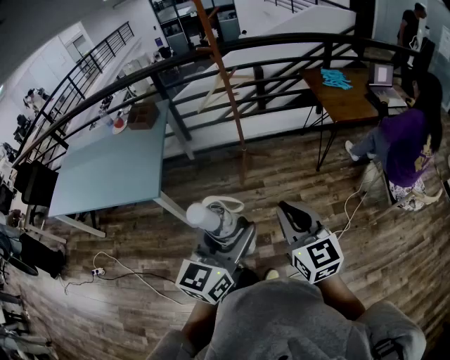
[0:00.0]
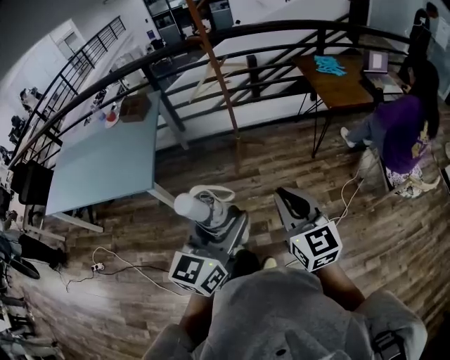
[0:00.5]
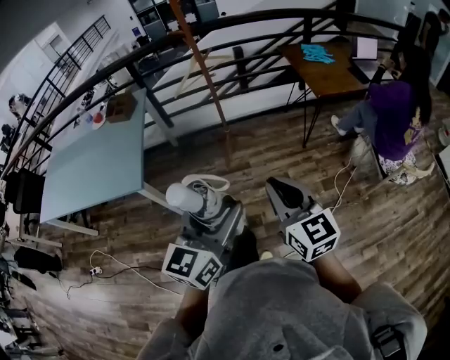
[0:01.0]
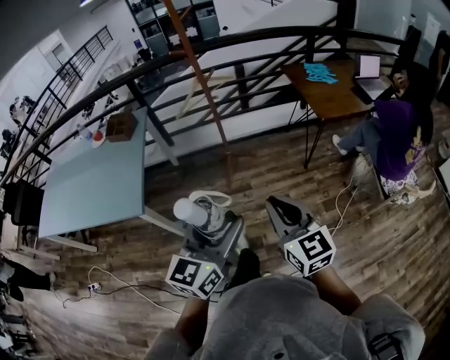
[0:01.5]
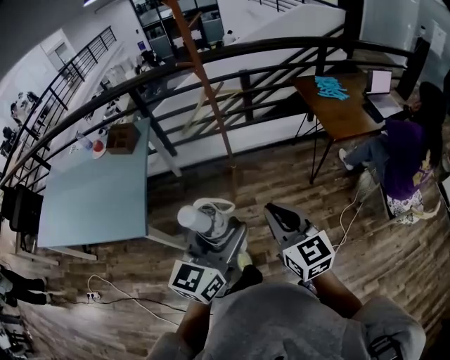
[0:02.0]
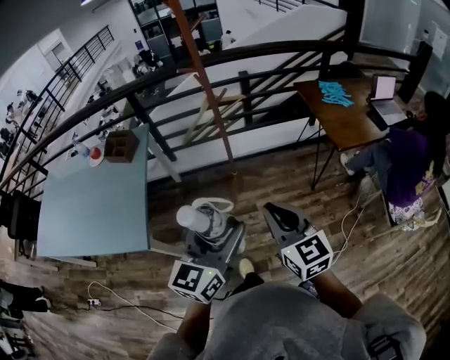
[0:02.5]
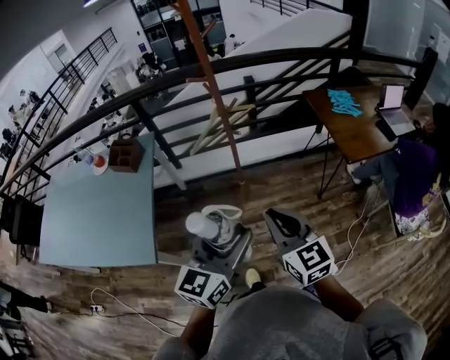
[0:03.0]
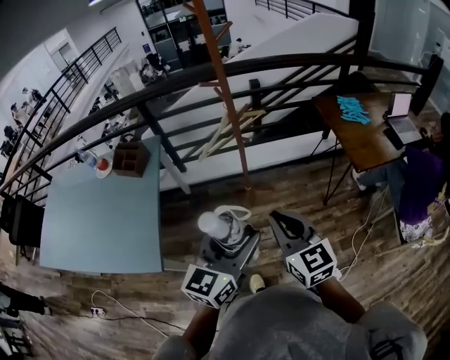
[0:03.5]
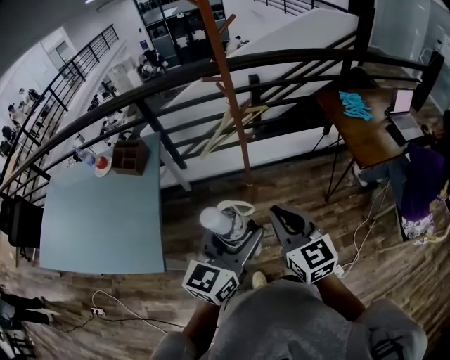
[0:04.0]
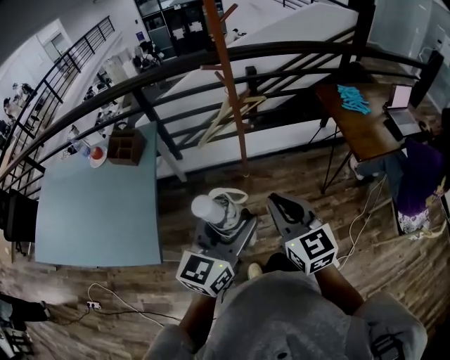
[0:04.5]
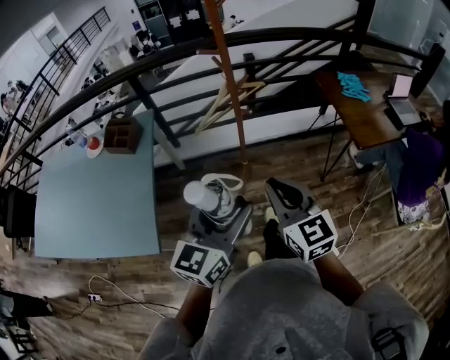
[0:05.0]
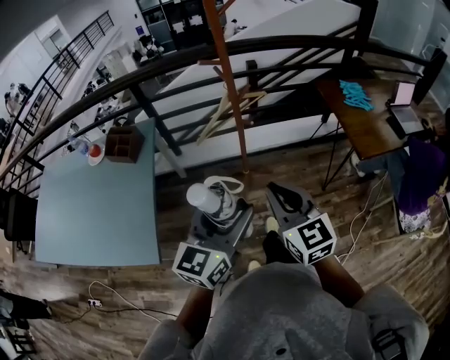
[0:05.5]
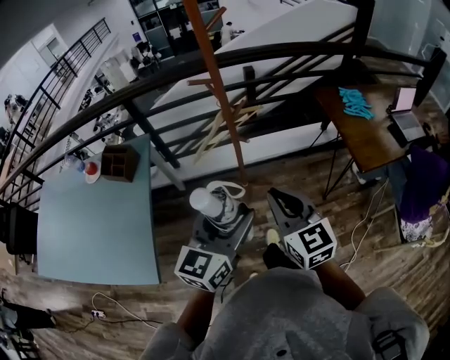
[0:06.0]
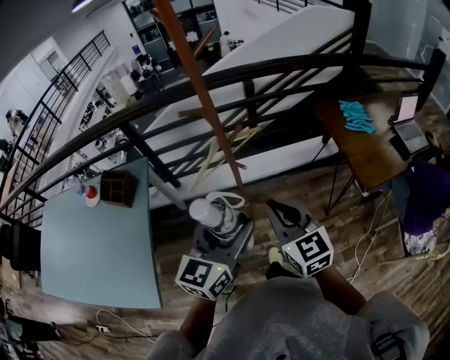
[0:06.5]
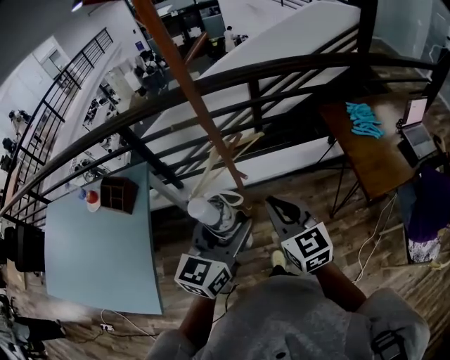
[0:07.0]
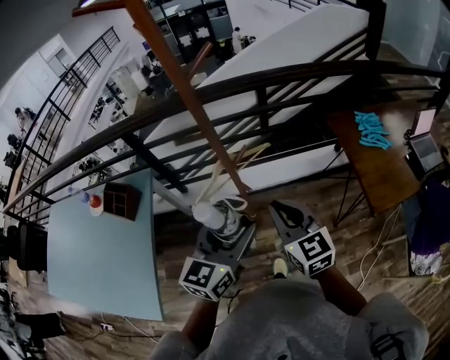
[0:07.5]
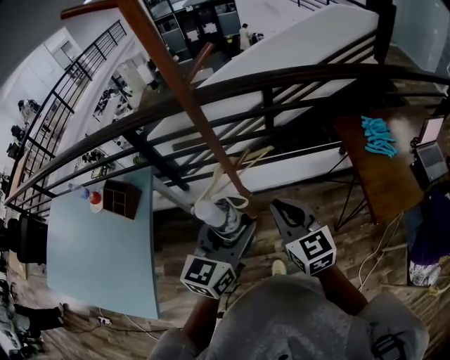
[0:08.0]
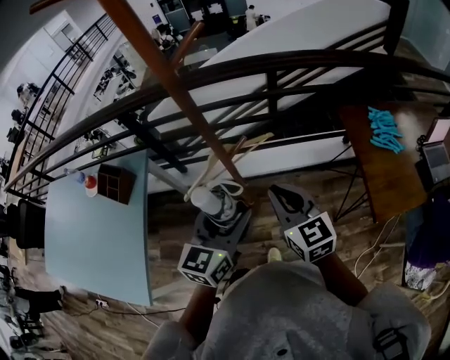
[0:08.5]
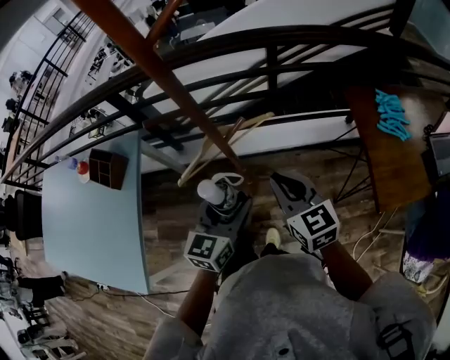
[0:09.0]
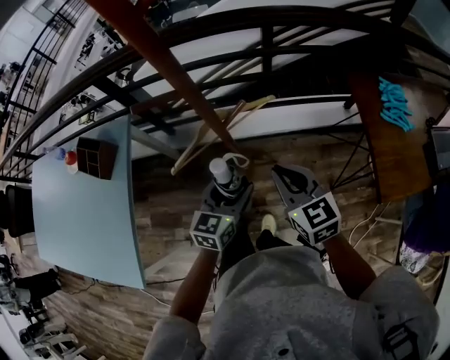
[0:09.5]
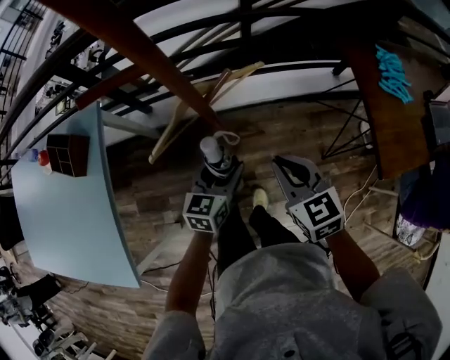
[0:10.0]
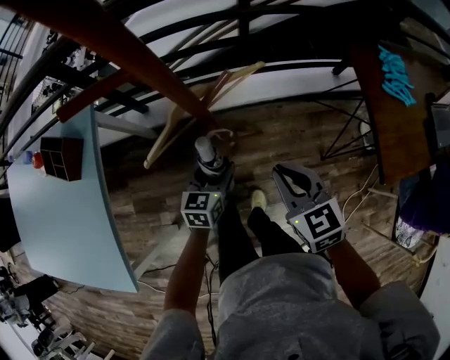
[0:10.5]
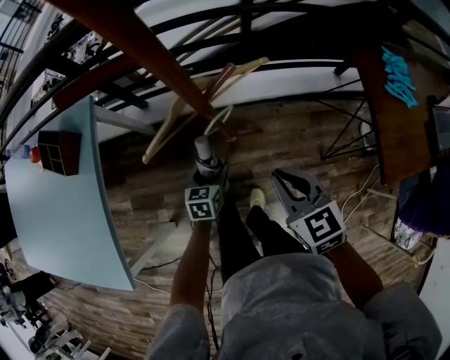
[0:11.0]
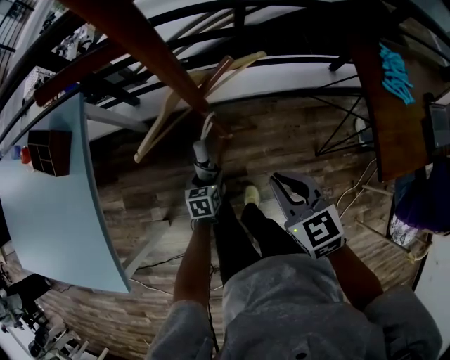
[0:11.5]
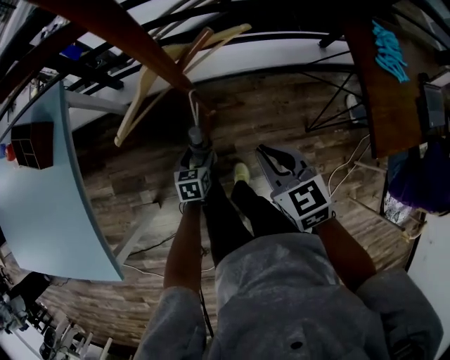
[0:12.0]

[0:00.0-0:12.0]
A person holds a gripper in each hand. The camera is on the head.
0:00.0 to 0:02.0: The two grippers go about 20 cm forward.
0:02.0 to 0:04.0: Both grippers travel together forward and to the left, roughly 20 cm.
0:04.0 to 0:06.0: Both grippers travel together forward, some 10 cm.
0:06.0 to 0:08.0: Both grippers travel together forward, some 20 cm.
0:08.0 to 0:10.0: The right gripper goes about 20 cm downward, while the left gripper is displaced downward by approximately 30 cm.
0:10.0 to 0:12.0: The right gripper travels downward by approximately 5 cm; the left gripper shifts roughly 25 cm downward, and changes its angle by roughly 30 degrees.

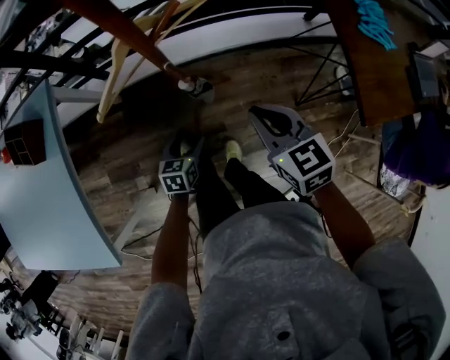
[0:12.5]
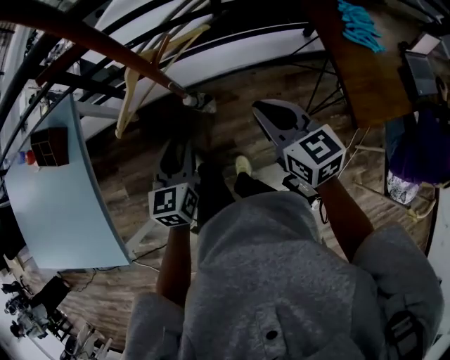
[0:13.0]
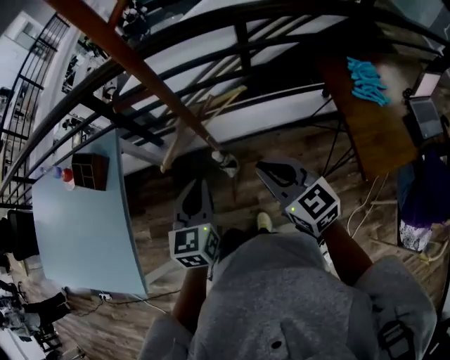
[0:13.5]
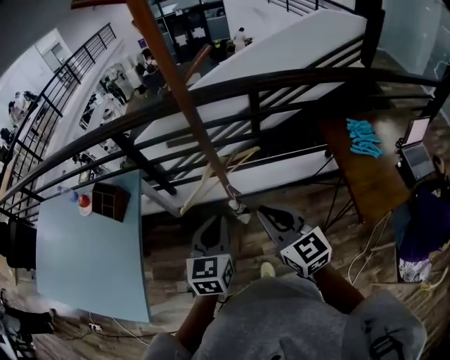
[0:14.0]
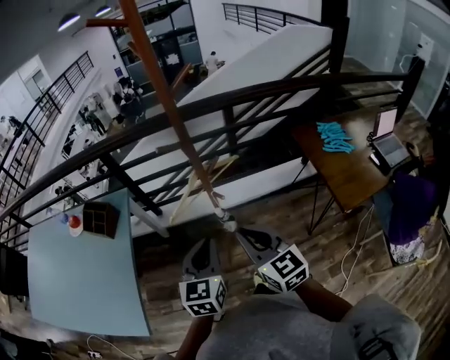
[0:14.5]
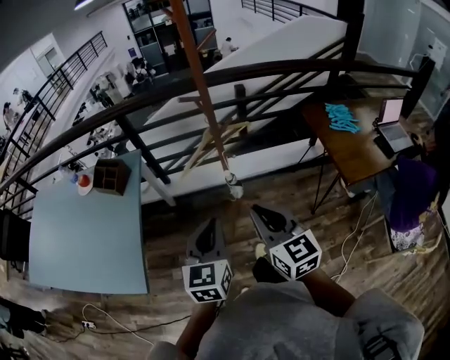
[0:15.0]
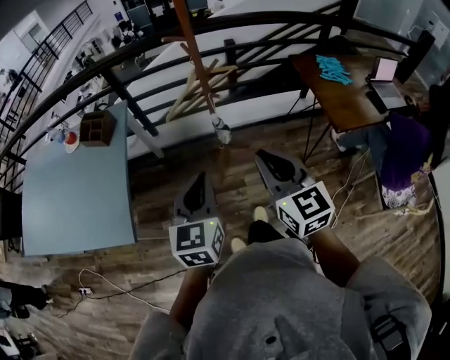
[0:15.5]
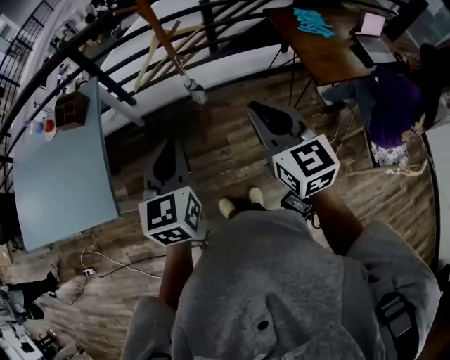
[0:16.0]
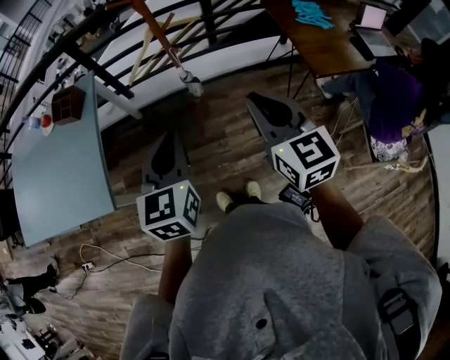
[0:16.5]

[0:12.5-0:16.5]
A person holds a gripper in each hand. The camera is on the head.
0:12.5 to 0:14.5: The left gripper goes roughly 40 cm upward, rotates approximately 30 degrees, and closes up, while the right gripper heads upward, backward and to the left, covering roughly 30 cm, and rotates roughly 20 degrees.
0:14.5 to 0:16.5: The right gripper moves backward and to the right, approximately 20 cm. The left gripper goes approximately 20 cm backward.

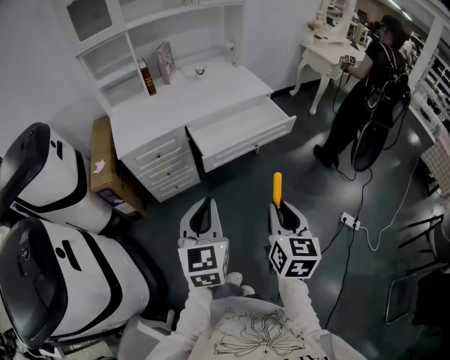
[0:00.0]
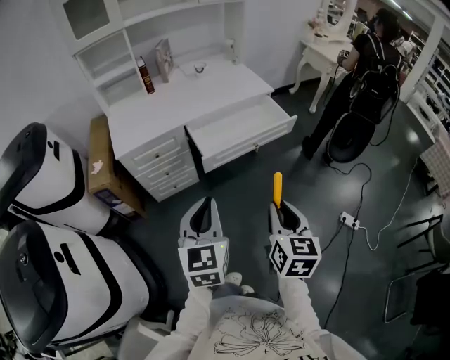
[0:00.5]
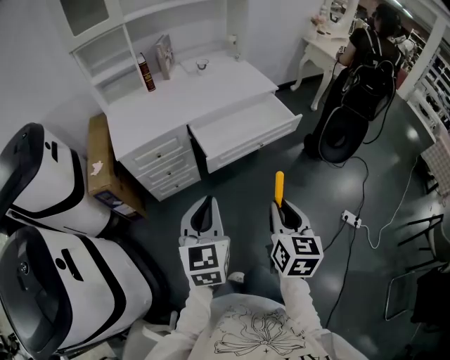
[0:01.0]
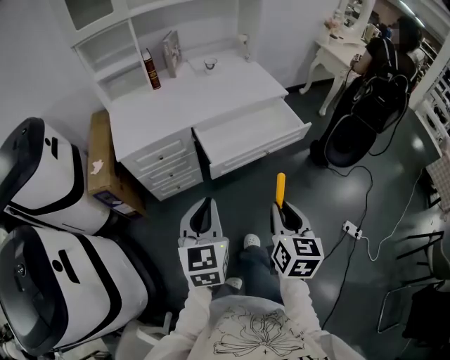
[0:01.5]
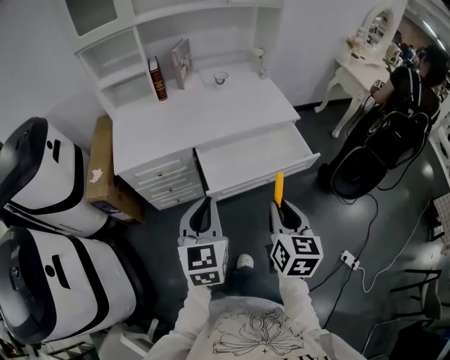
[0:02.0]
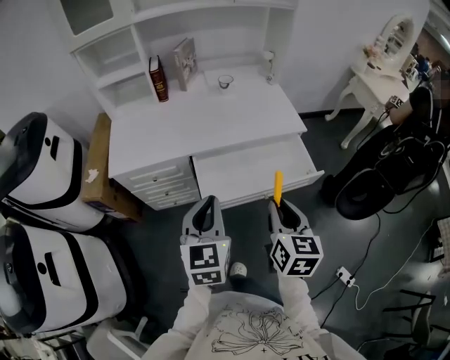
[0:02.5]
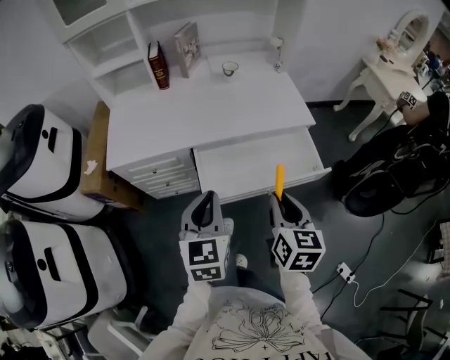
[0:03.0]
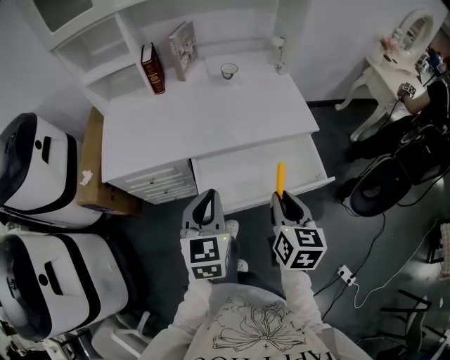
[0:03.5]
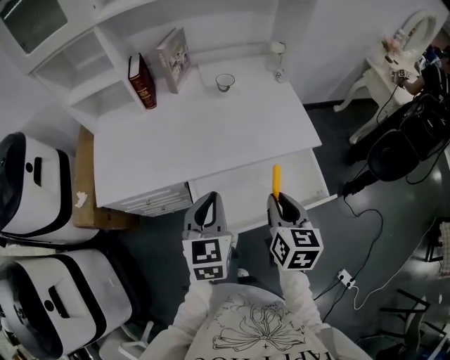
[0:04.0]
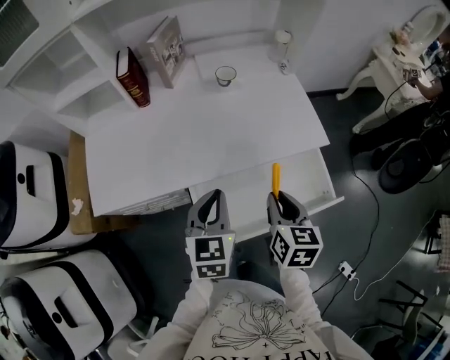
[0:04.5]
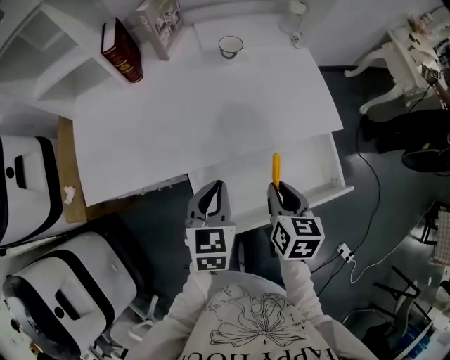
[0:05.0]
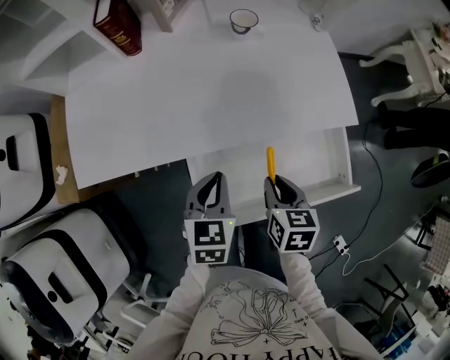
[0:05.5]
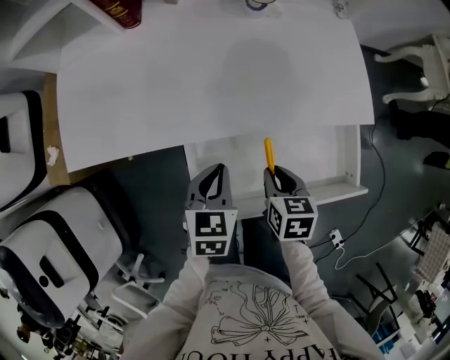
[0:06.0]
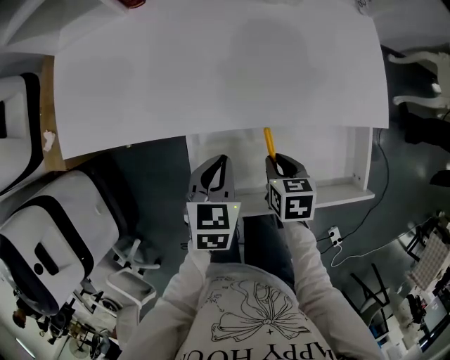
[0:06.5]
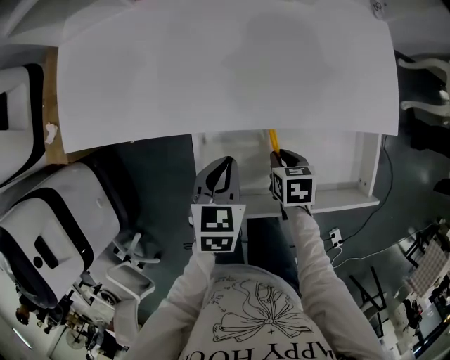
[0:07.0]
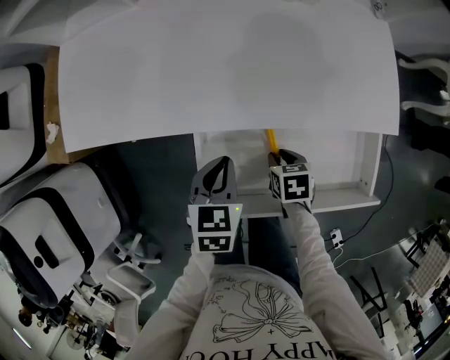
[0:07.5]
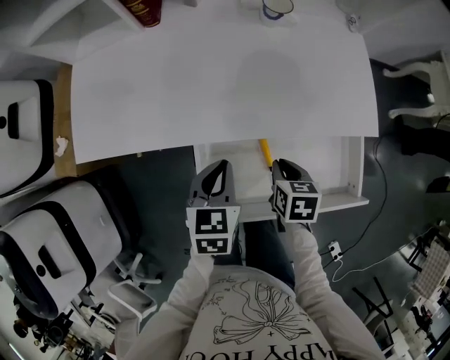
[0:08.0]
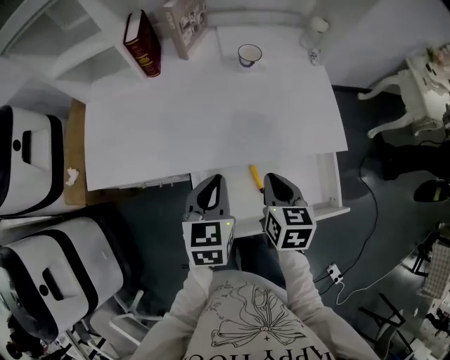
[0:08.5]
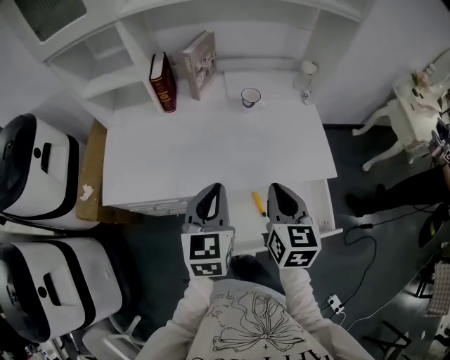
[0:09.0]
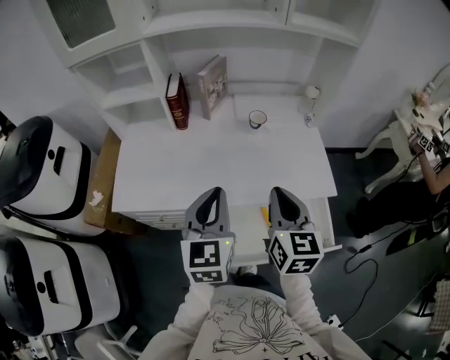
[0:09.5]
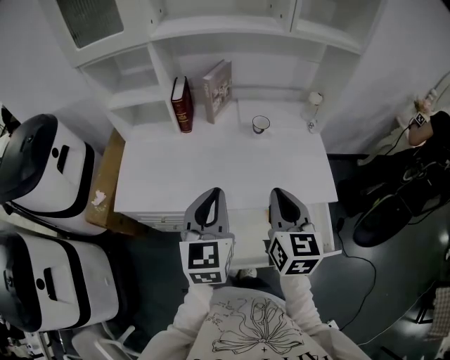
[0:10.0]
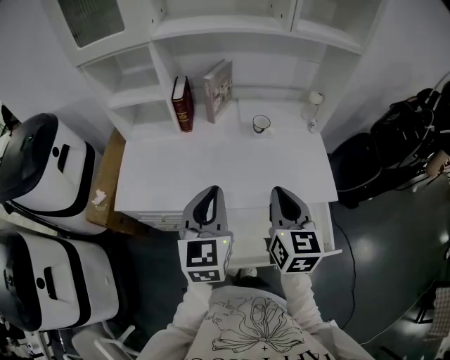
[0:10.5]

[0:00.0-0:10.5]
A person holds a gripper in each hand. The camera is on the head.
0:00.0 to 0:02.0: Both grippers travel together forward, about 25 cm.
0:02.0 to 0:04.0: Both grippers move forward, roughly 30 cm.
0:04.0 to 0:06.5: The grippers both shift downward by roughly 25 cm. The right gripper angles its fingers downward, by about 30 degrees. Meanwhile the left gripper changes its angle by approximately 30 degrees.
0:06.5 to 0:08.5: Both grippers travel together upward, roughly 15 cm. The right gripper rotates about 30 degrees.
0:08.5 to 0:10.5: Both grippers move upward, some 20 cm. The left gripper rotates roughly 20 degrees. The right gripper rotates about 30 degrees.
